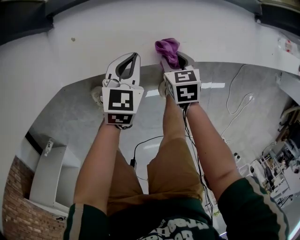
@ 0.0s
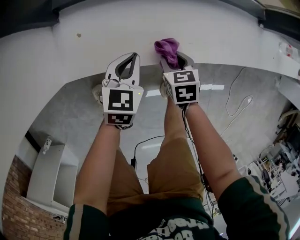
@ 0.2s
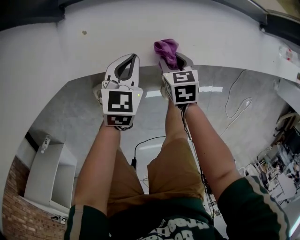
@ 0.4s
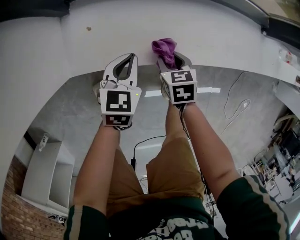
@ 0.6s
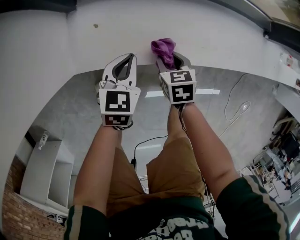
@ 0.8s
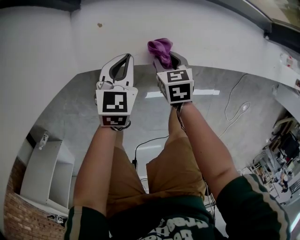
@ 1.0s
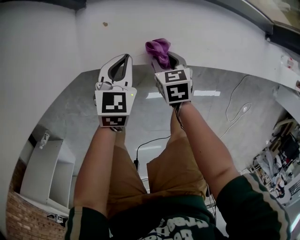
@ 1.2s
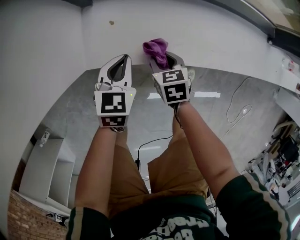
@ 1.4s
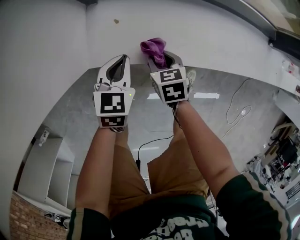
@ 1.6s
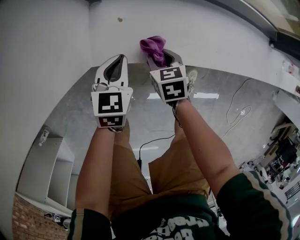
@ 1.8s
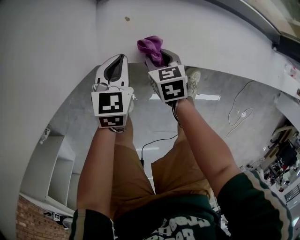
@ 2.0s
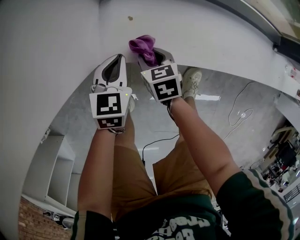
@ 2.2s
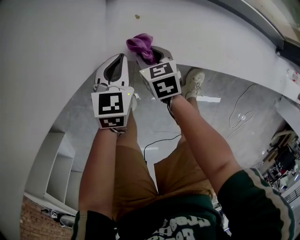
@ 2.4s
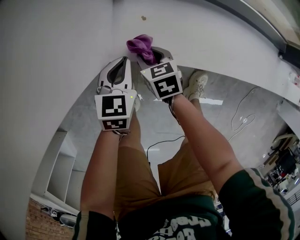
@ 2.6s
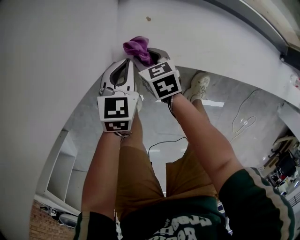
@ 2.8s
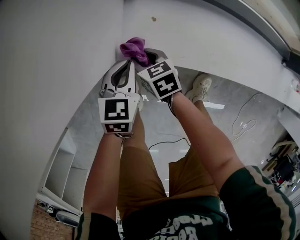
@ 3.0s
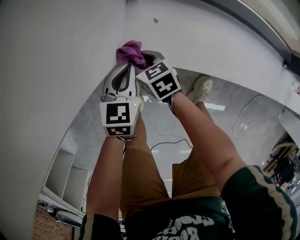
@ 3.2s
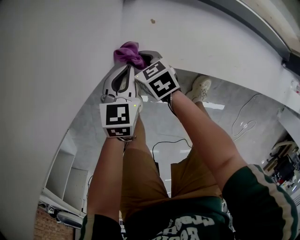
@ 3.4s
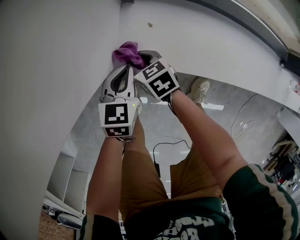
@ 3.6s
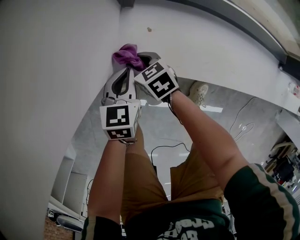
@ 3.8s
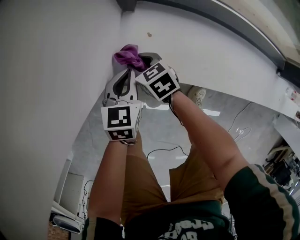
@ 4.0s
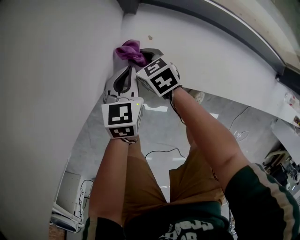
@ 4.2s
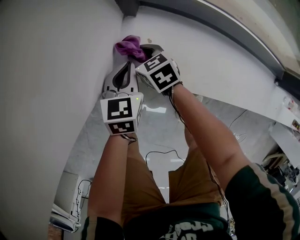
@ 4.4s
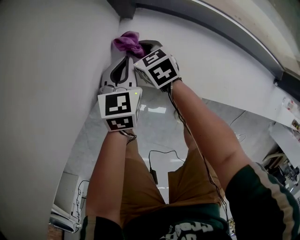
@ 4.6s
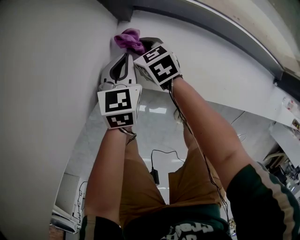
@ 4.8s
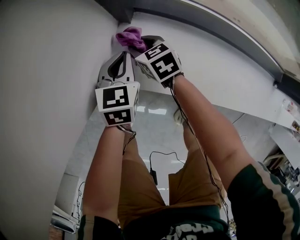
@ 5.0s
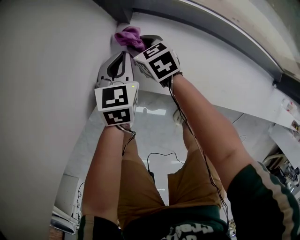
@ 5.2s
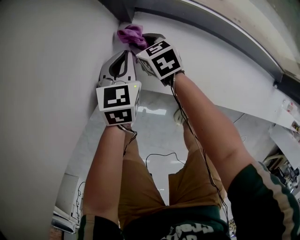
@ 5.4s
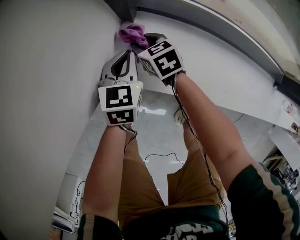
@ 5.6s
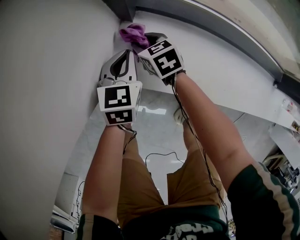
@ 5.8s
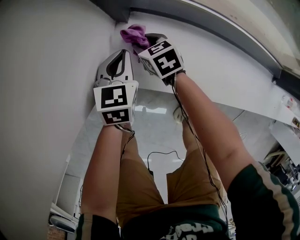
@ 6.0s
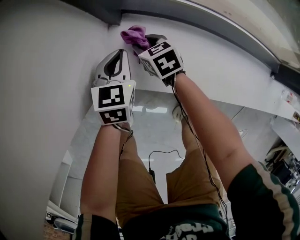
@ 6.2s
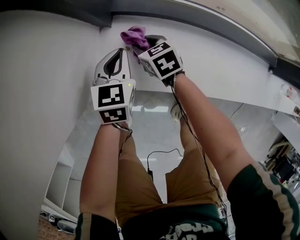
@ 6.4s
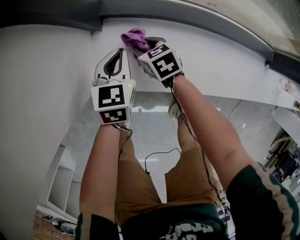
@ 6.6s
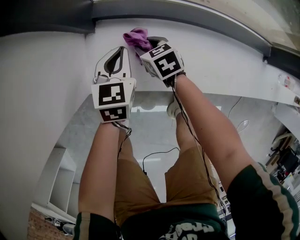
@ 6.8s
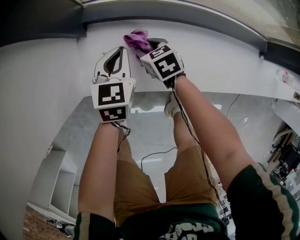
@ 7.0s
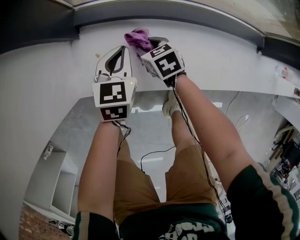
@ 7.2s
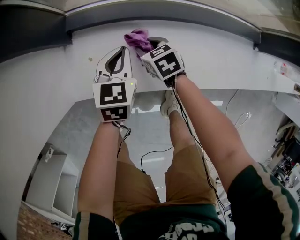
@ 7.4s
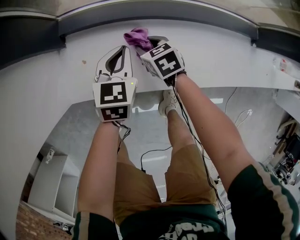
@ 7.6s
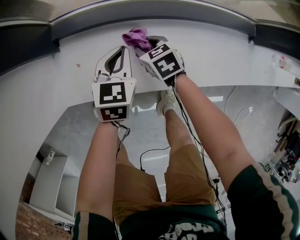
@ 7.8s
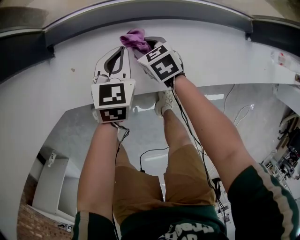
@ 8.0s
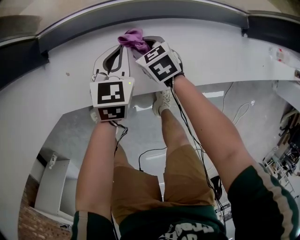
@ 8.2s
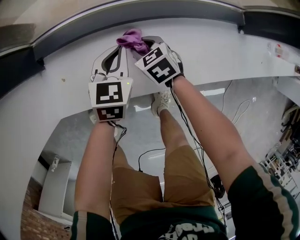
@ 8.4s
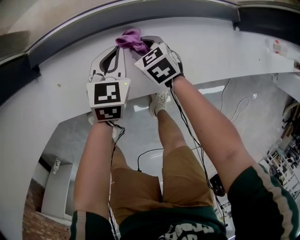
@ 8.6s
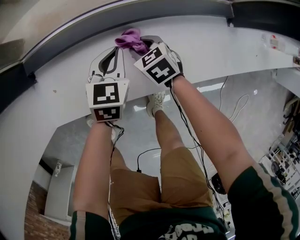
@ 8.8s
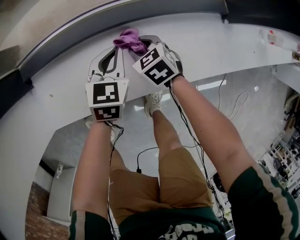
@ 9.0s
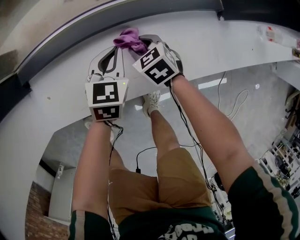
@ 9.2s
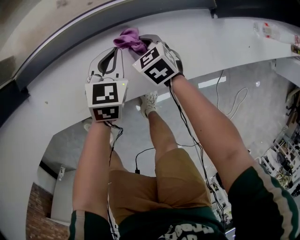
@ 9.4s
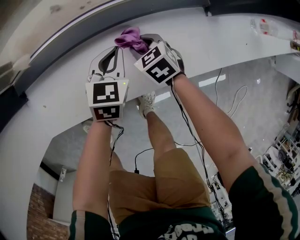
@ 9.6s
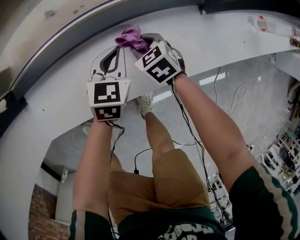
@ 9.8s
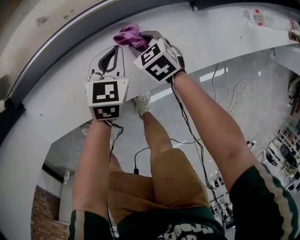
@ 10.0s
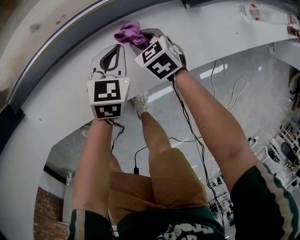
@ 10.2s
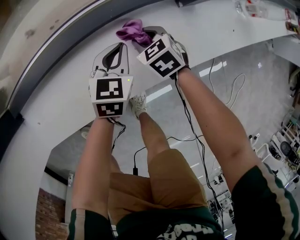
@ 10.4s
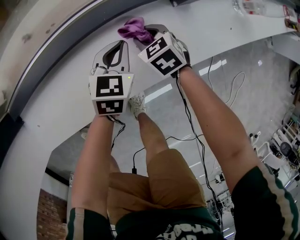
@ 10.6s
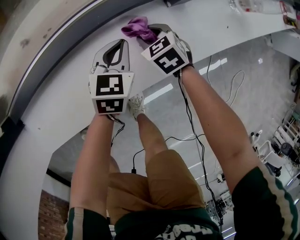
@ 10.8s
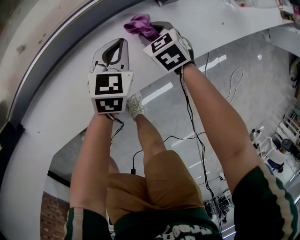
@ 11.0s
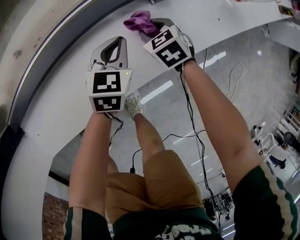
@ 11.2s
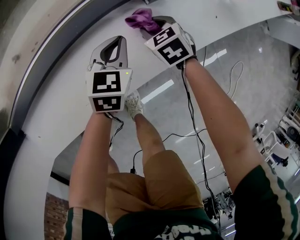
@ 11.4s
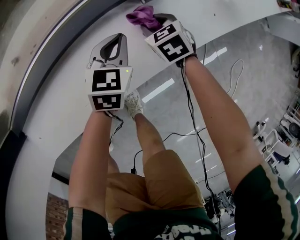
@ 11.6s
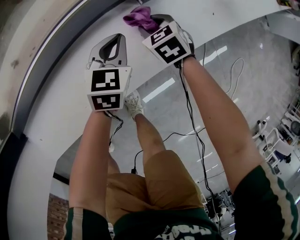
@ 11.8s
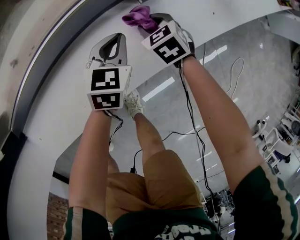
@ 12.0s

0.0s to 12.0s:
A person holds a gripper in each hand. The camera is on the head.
0.0s to 1.6s: The grippers both shift to the left by approximately 20 cm.
1.6s to 3.0s: The right gripper travels to the left by roughly 20 cm, and rotates some 20 degrees. Meanwhile the left gripper travels to the left by about 10 cm.
3.0s to 4.4s: The grippers both shift forward by some 5 cm.
4.4s to 6.0s: The right gripper shifts some 5 cm to the right. Meanwhile the left gripper moves approximately 5 cm.
6.0s to 7.6s: The two grippers go about 20 cm to the right.
7.6s to 9.0s: Both grippers move to the right, some 20 cm.
9.0s to 10.4s: Both grippers move to the right, some 20 cm.
10.4s to 12.0s: Both grippers move to the right, some 15 cm.

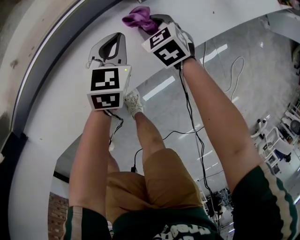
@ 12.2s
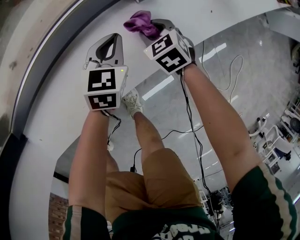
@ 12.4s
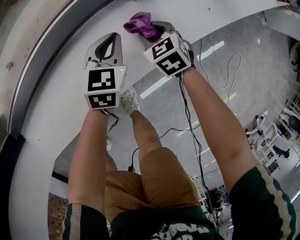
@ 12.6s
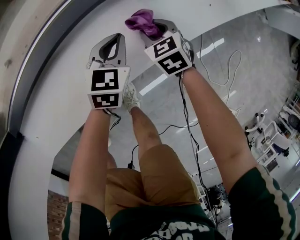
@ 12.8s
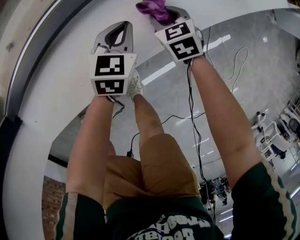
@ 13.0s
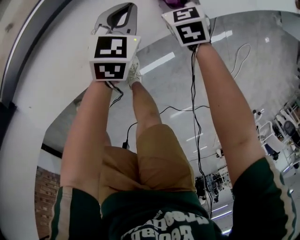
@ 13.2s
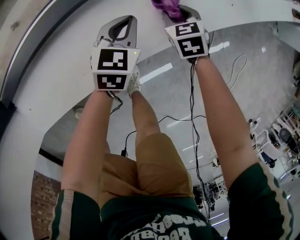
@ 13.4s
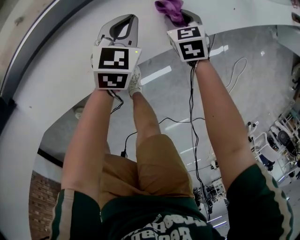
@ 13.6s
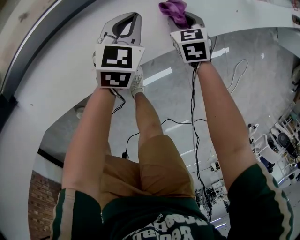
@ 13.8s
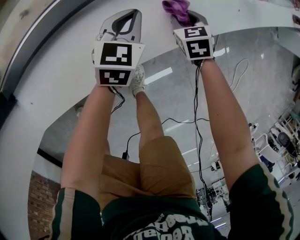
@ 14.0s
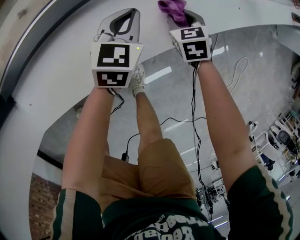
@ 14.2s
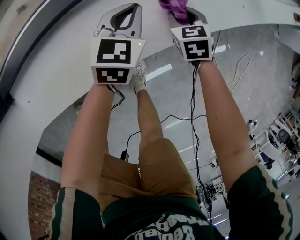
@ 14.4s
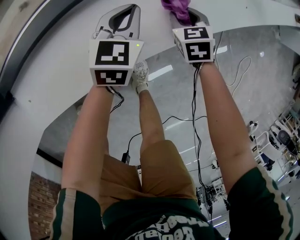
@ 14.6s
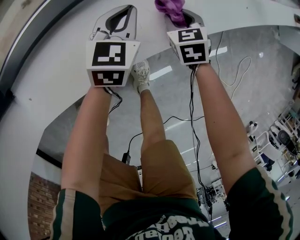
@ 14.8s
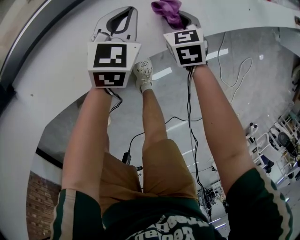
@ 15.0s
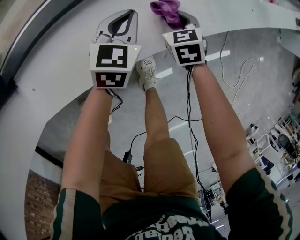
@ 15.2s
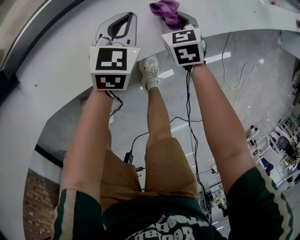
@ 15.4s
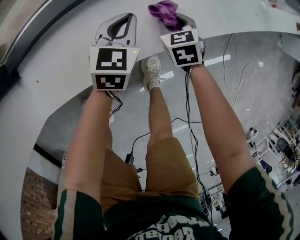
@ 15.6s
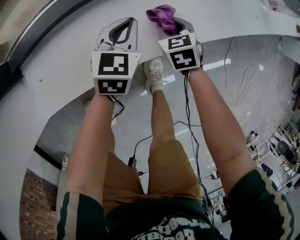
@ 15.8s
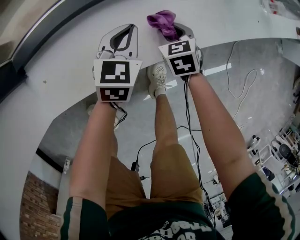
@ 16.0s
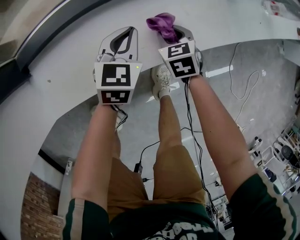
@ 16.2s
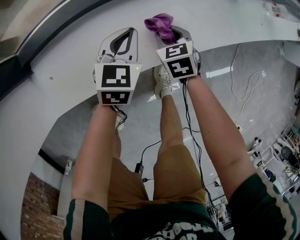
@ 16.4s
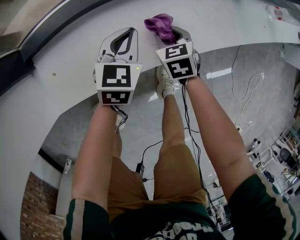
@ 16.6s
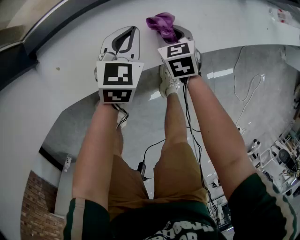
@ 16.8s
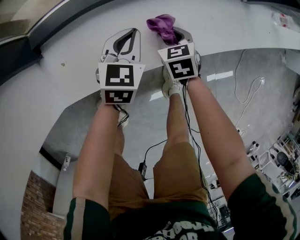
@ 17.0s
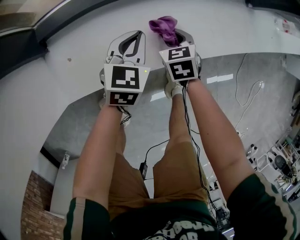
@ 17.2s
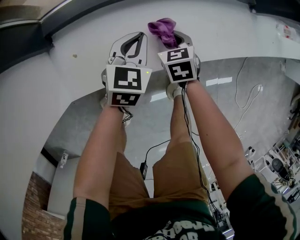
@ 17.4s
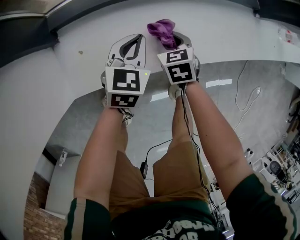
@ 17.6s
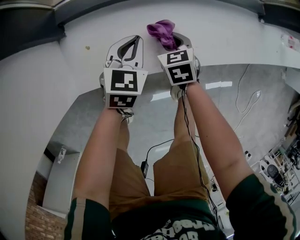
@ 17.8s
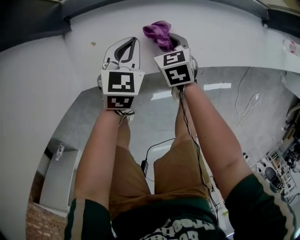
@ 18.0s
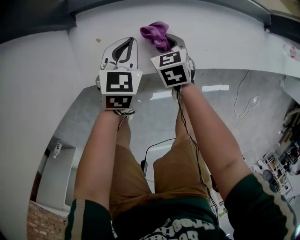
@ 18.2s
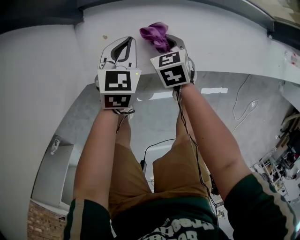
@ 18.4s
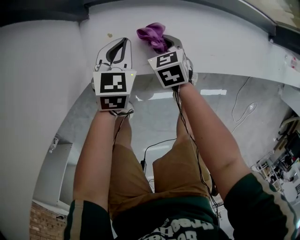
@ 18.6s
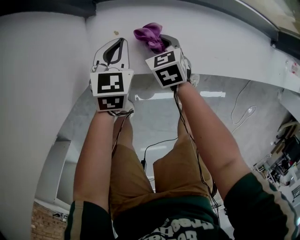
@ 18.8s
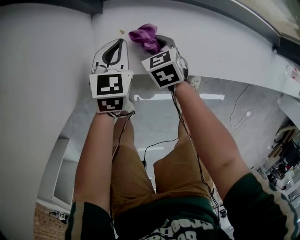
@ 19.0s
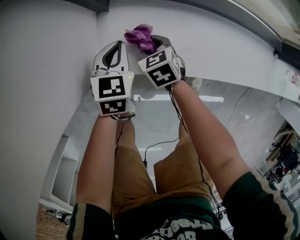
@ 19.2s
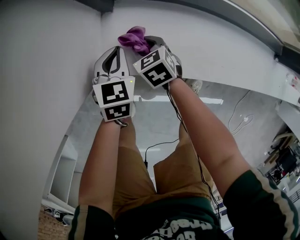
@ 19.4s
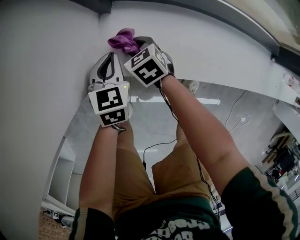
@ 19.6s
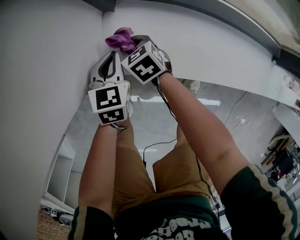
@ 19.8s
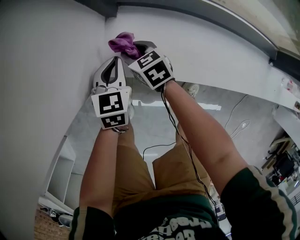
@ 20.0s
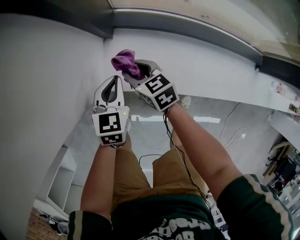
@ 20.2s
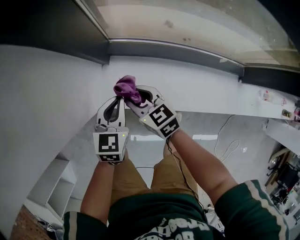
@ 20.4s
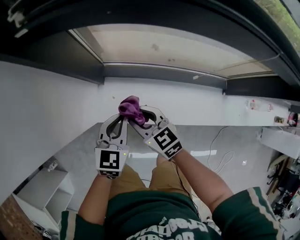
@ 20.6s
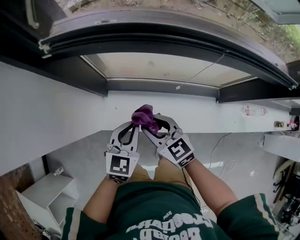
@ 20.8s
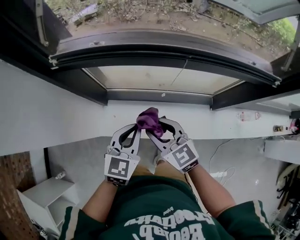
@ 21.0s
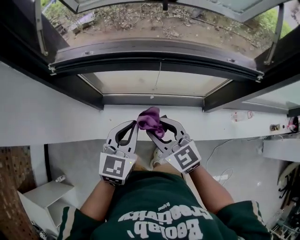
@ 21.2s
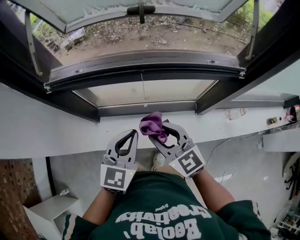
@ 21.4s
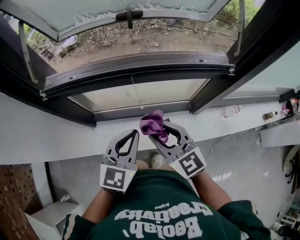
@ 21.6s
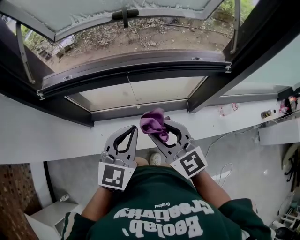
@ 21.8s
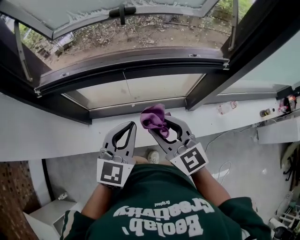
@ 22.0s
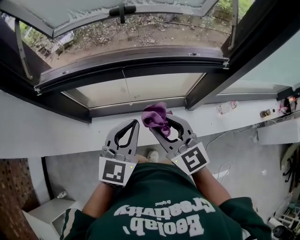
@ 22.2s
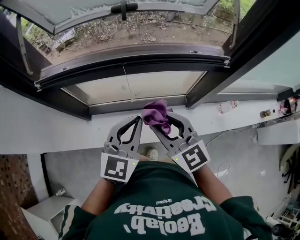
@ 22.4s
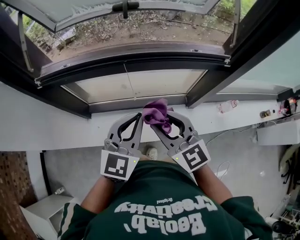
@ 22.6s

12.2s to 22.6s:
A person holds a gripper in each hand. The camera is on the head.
12.2s to 13.6s: The left gripper moves roughly 5 cm, while the right gripper travels backward by some 5 cm.
13.6s to 15.2s: Both grippers travel together to the left and backward, roughly 10 cm.
15.2s to 16.6s: Both grippers travel together to the left and backward, about 15 cm.
16.6s to 18.2s: The grippers both shift to the left by about 20 cm.
18.2s to 19.6s: The right gripper shifts by roughly 20 cm, and rotates roughly 30 degrees; the left gripper moves roughly 15 cm, and rotates some 30 degrees.
19.6s to 21.2s: Both grippers travel together upward and to the right, approximately 60 cm. The right gripper angles its fingers upward, by approximately 40 degrees. The left gripper changes its angle by about 30 degrees.
21.2s to 22.6s: Both grippers move to the right and upward, approximately 15 cm.

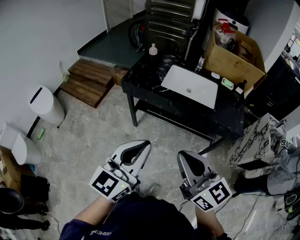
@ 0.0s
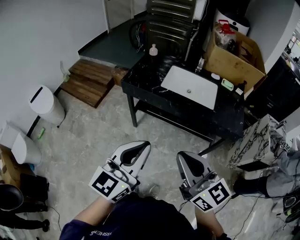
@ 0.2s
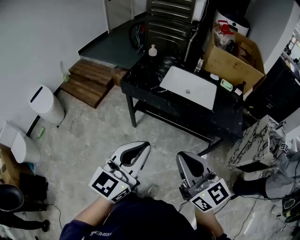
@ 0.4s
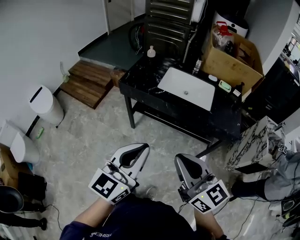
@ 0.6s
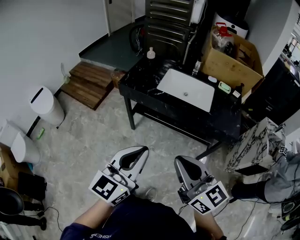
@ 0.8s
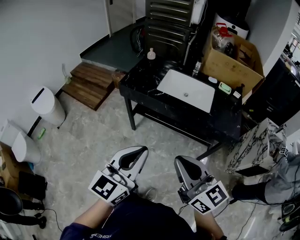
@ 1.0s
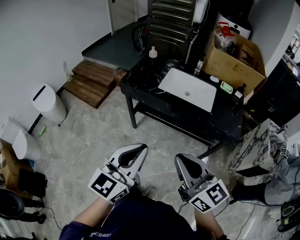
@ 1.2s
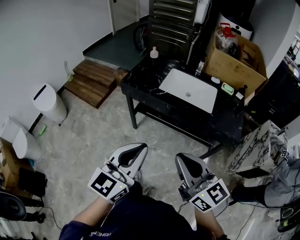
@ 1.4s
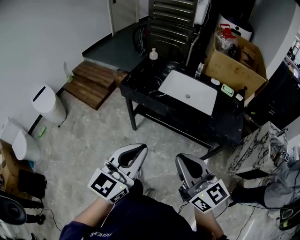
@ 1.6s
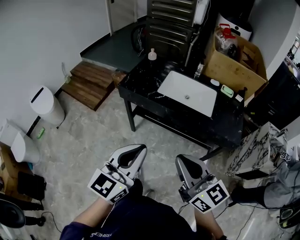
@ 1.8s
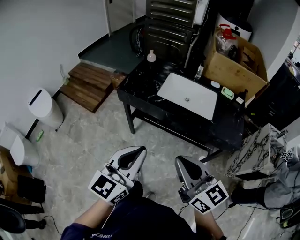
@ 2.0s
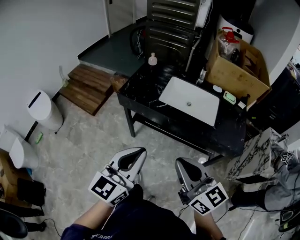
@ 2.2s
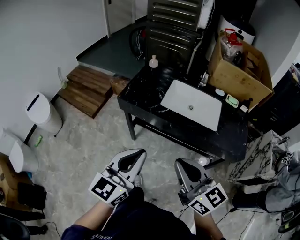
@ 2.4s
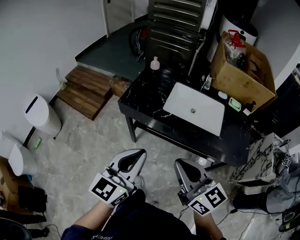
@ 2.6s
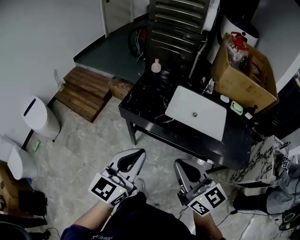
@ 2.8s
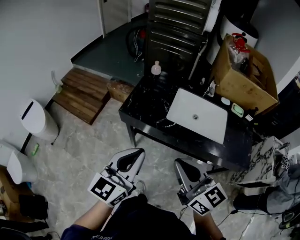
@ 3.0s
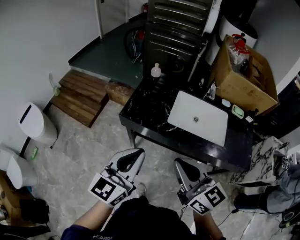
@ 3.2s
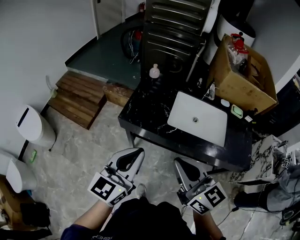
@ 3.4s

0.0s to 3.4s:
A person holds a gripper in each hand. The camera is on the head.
0.0s to 1.6s: The right gripper travels to the right by approximately 5 cm.
1.6s to 3.4s: Both grippers move forward and to the left, about 30 cm.
